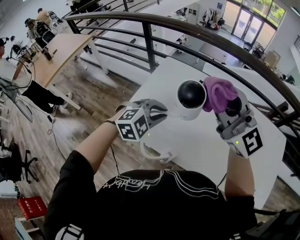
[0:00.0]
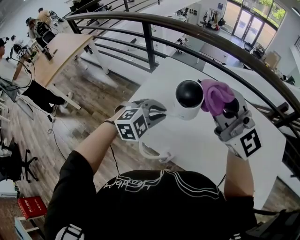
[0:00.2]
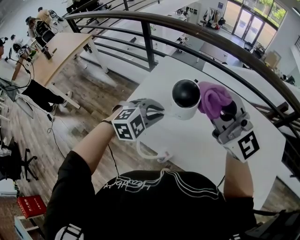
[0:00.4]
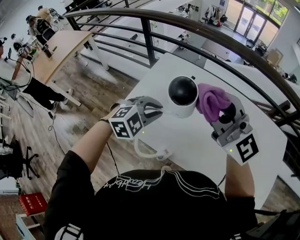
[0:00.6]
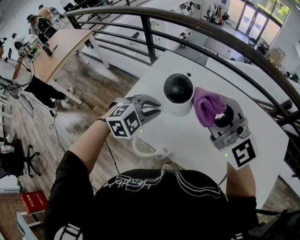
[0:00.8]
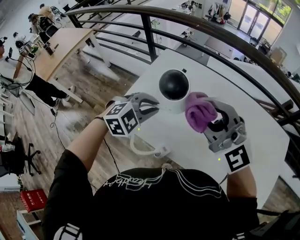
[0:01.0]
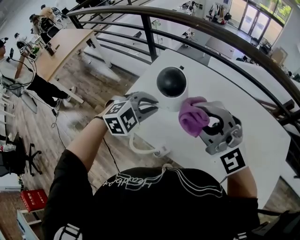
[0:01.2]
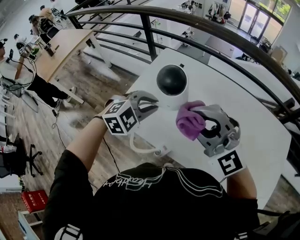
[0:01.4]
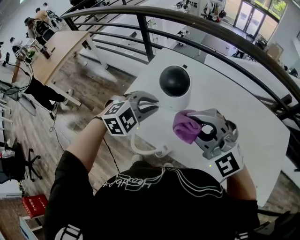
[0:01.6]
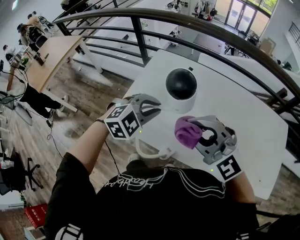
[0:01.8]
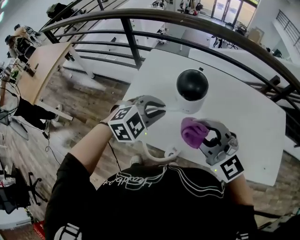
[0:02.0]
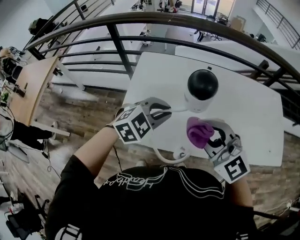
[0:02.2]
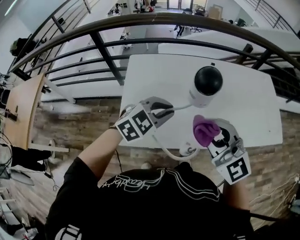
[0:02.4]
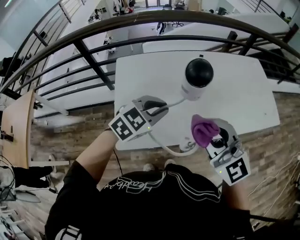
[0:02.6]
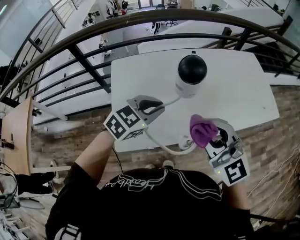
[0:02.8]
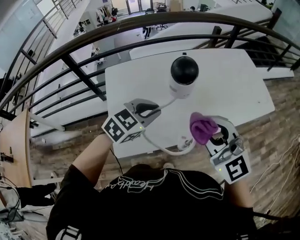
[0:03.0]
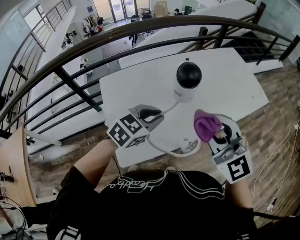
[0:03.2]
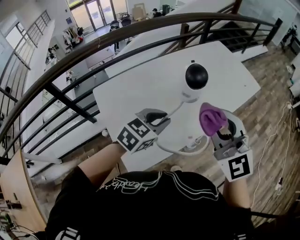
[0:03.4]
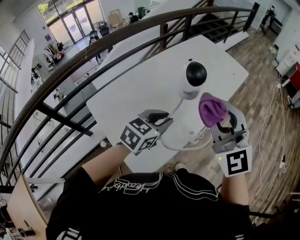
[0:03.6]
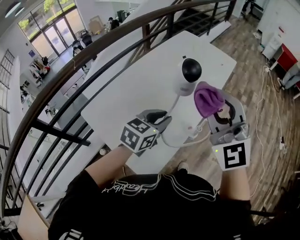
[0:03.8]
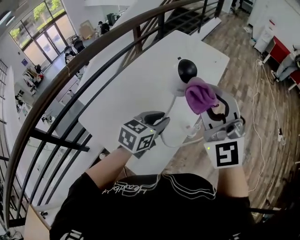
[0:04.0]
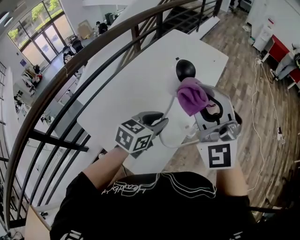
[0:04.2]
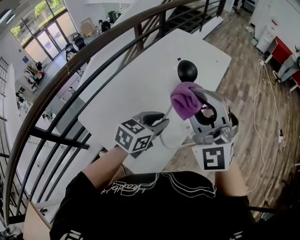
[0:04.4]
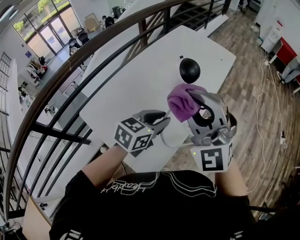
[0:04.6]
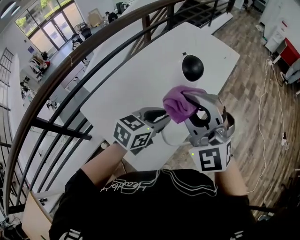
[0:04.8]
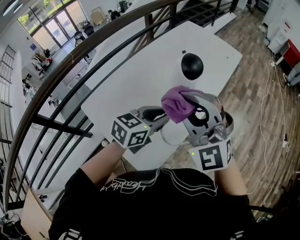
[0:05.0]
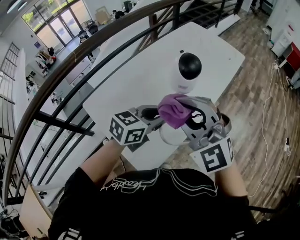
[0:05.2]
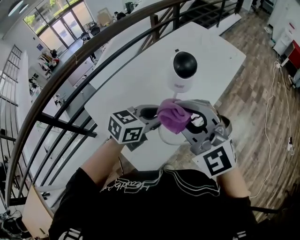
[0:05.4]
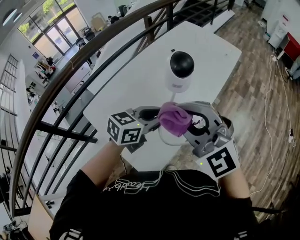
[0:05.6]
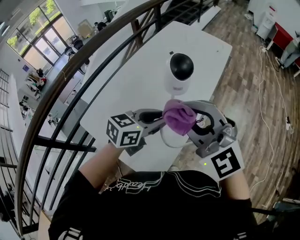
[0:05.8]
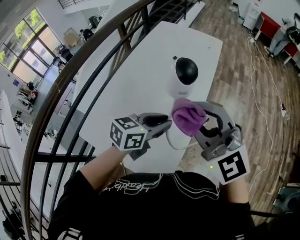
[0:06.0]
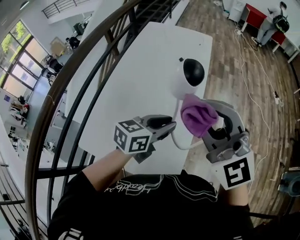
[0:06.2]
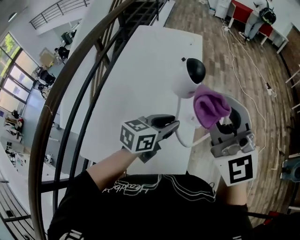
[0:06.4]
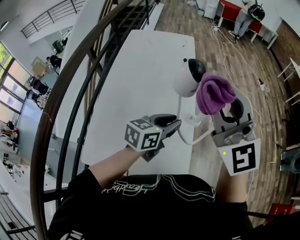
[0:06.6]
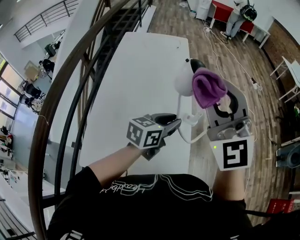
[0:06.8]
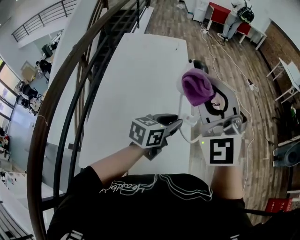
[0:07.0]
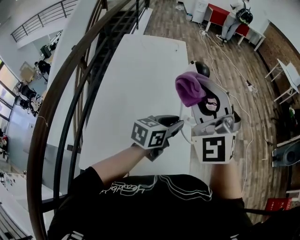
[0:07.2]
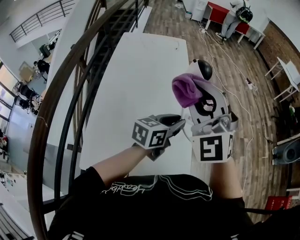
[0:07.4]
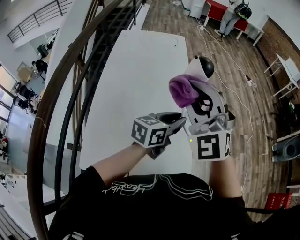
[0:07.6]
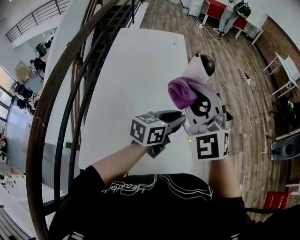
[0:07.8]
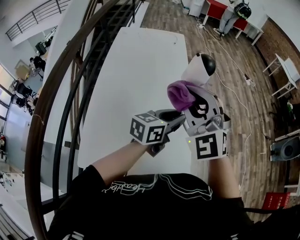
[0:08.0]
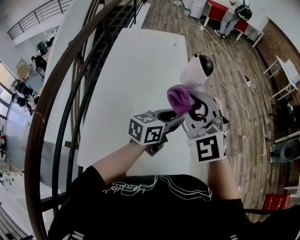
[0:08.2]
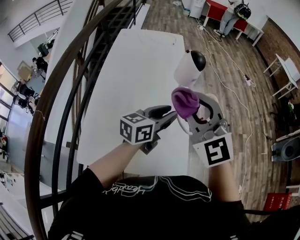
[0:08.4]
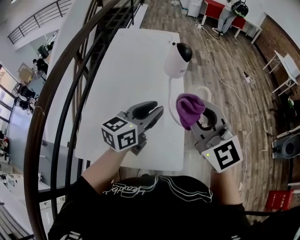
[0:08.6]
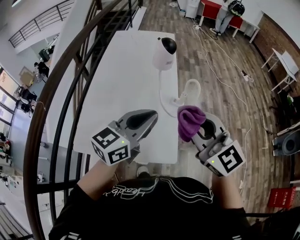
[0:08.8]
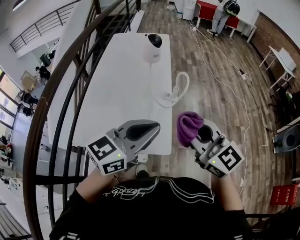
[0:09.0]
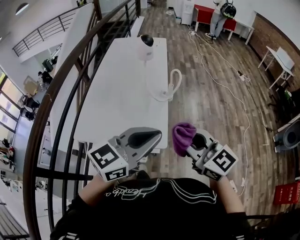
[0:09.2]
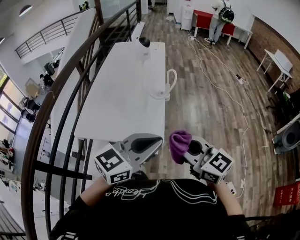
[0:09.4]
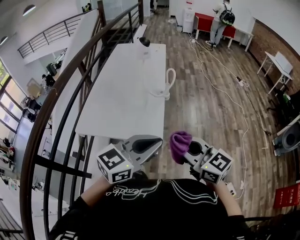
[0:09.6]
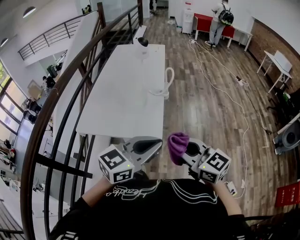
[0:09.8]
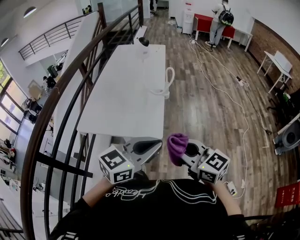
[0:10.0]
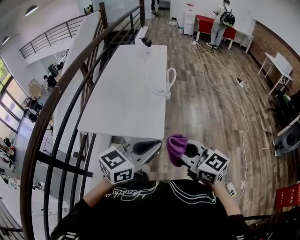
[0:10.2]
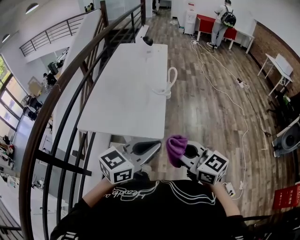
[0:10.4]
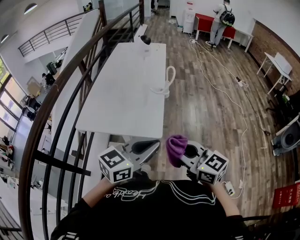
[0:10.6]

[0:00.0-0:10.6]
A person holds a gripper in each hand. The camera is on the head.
0:00.0 to 0:01.6: The right gripper goes approximately 15 cm downward and backward, and swivels about 30 degrees.
0:01.6 to 0:03.0: The left gripper turns by some 40 degrees. Meanwhile the right gripper shifts by about 5 cm, and swivels approximately 60 degrees.
0:03.0 to 0:04.6: The left gripper changes its angle by roughly 30 degrees. Meanwhile the right gripper shifts by some 15 cm, and rotates roughly 50 degrees.
0:04.6 to 0:06.0: The right gripper rotates about 20 degrees.
0:06.0 to 0:07.6: The right gripper goes upward and returns, roughly 10 cm each way, and turns by roughly 50 degrees.
0:07.6 to 0:09.0: The left gripper is displaced backward and upward by some 25 cm, and turns by some 20 degrees; the right gripper goes approximately 30 cm backward and to the right, and rolls clockwise, seen from behind, by some 50 degrees.
0:09.0 to 0:10.6: The left gripper goes some 20 cm backward, while the right gripper shifts roughly 20 cm backward and downward.

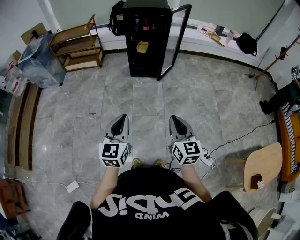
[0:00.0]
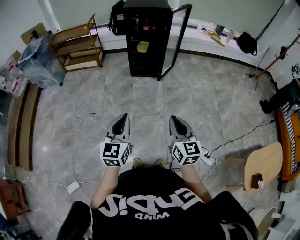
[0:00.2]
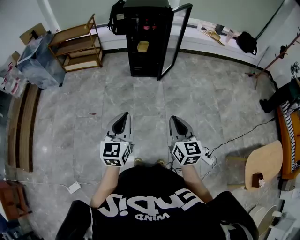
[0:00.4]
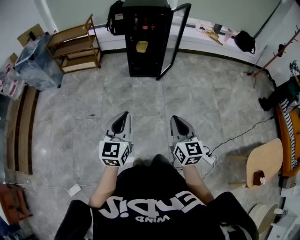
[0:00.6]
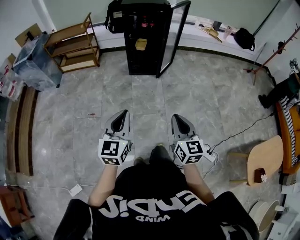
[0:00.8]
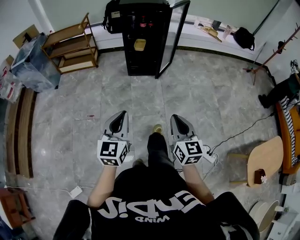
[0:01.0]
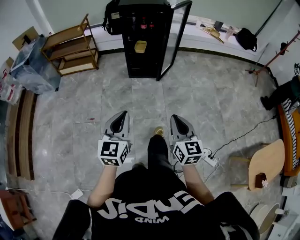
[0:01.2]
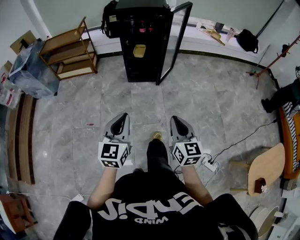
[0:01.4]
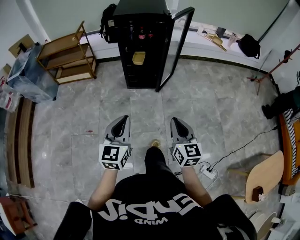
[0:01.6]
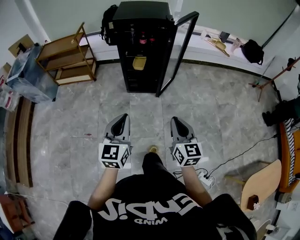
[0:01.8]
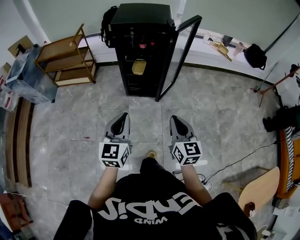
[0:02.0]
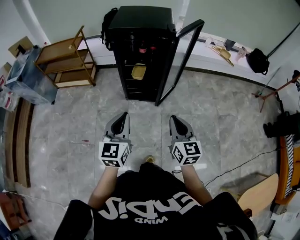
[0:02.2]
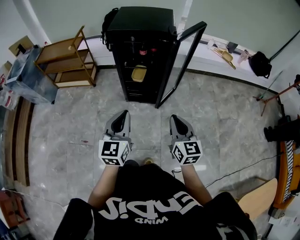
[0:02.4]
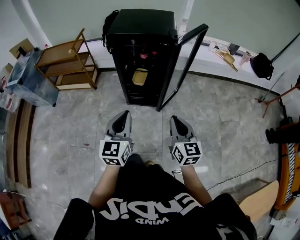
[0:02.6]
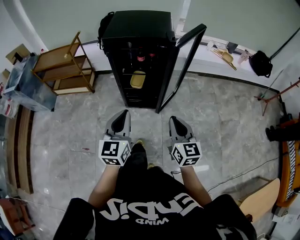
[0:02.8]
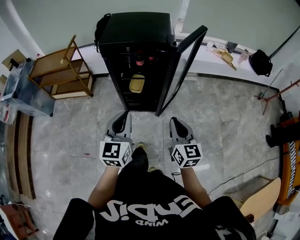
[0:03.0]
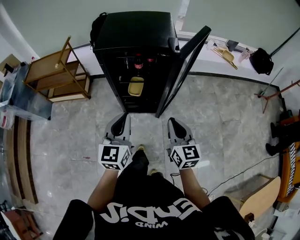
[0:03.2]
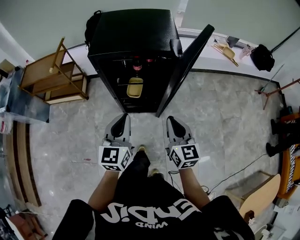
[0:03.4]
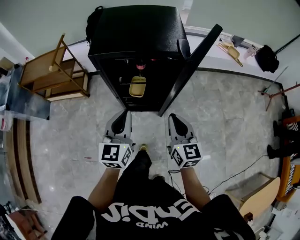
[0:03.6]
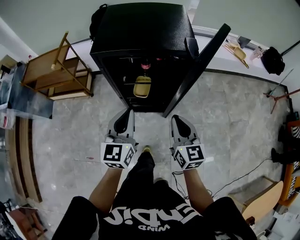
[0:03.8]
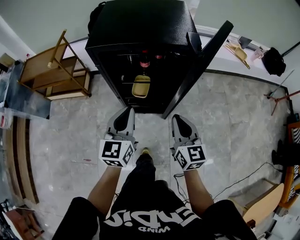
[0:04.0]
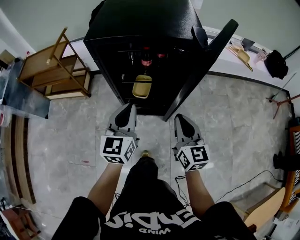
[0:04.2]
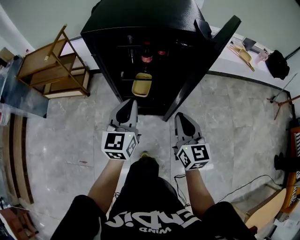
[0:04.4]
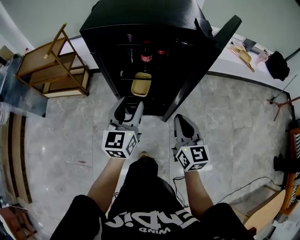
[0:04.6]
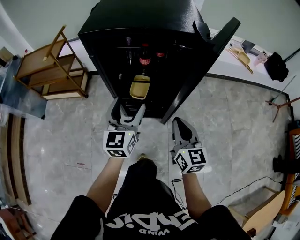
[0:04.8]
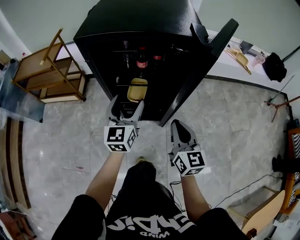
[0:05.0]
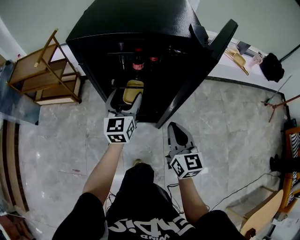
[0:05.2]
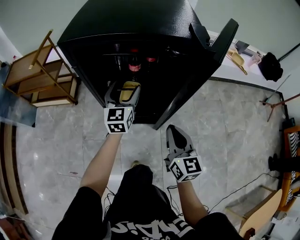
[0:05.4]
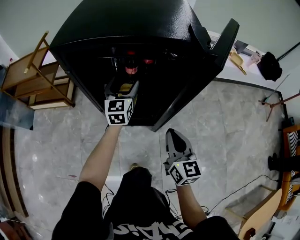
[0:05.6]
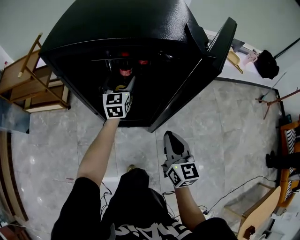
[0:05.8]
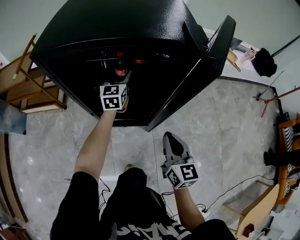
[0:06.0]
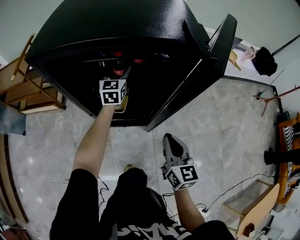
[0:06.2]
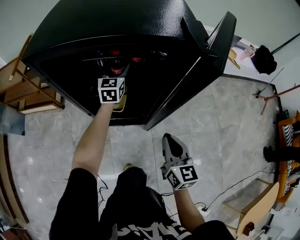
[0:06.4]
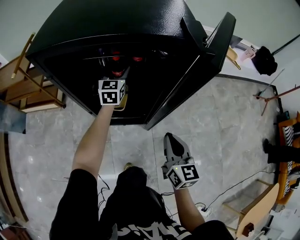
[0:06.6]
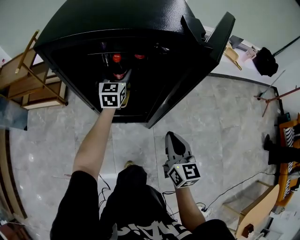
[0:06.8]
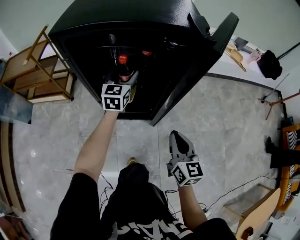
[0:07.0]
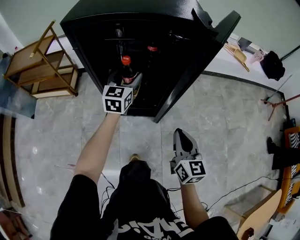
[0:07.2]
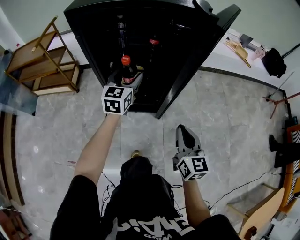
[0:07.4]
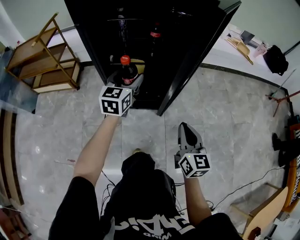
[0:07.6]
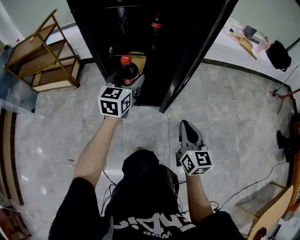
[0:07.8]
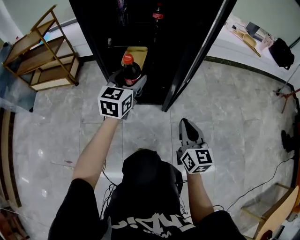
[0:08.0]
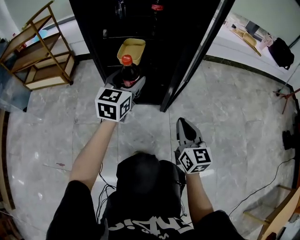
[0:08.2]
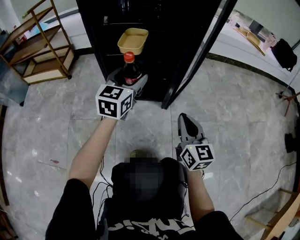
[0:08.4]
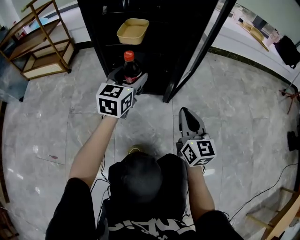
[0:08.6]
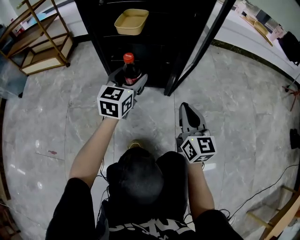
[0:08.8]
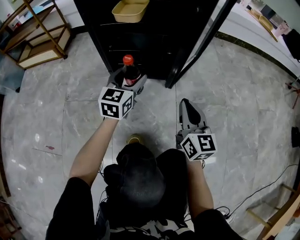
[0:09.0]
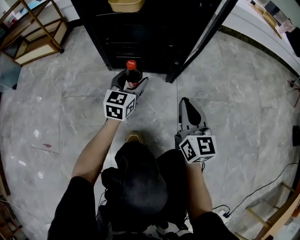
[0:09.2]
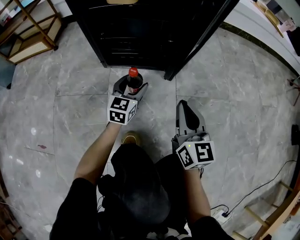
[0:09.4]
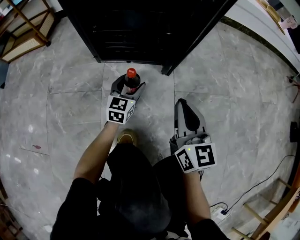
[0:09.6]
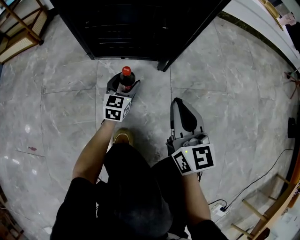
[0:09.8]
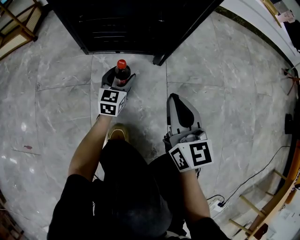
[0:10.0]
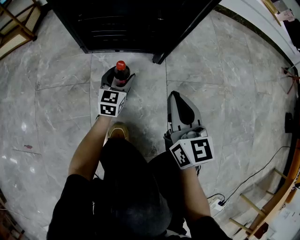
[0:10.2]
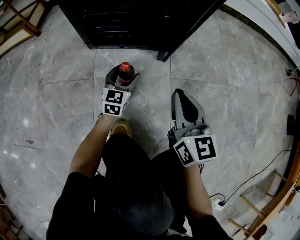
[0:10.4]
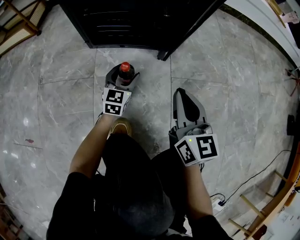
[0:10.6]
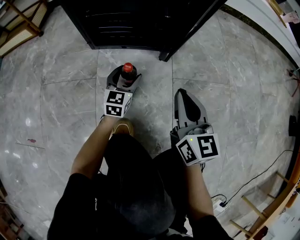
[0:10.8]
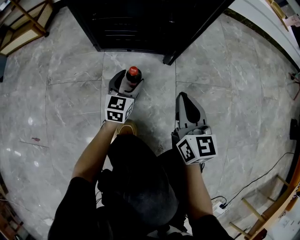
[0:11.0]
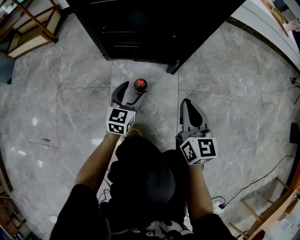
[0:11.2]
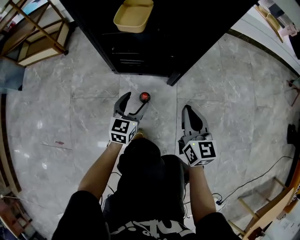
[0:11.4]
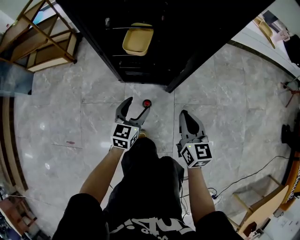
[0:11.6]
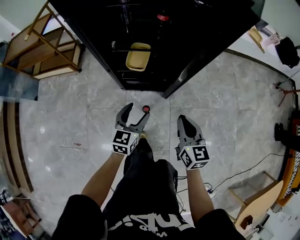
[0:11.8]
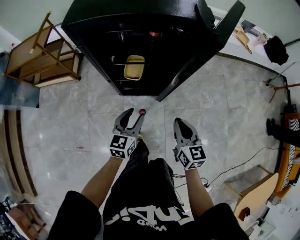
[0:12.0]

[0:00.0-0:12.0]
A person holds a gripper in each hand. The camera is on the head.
0:00.0 to 0:01.6: Both grippers move forward, approximately 20 cm.
0:01.6 to 0:03.0: Both grippers move forward, some 35 cm.
0:03.0 to 0:04.4: Both grippers move forward and downward, about 25 cm.
0:04.4 to 0:06.0: The right gripper shifts some 5 cm downward, while the left gripper moves forward and downward, approximately 30 cm, and opens its fingers.
0:06.0 to 0:07.6: The right gripper heads backward and downward, covering approximately 15 cm; the left gripper travels backward by about 20 cm.
0:07.6 to 0:09.0: Both grippers move downward, roughly 35 cm.
0:09.0 to 0:10.4: The right gripper heads downward, covering some 5 cm, while the left gripper goes roughly 25 cm downward.
0:10.4 to 0:12.0: The two grippers go about 50 cm upward.

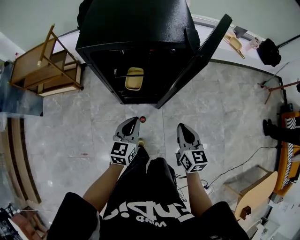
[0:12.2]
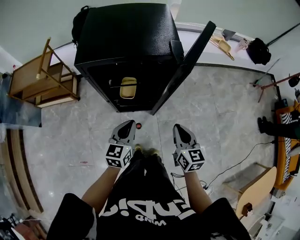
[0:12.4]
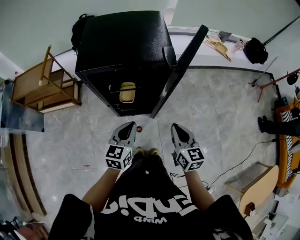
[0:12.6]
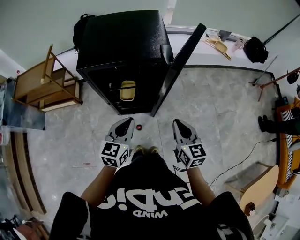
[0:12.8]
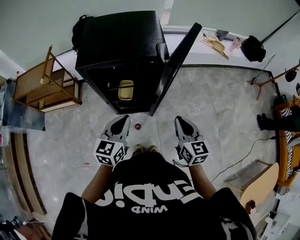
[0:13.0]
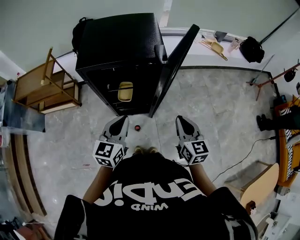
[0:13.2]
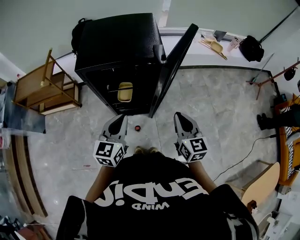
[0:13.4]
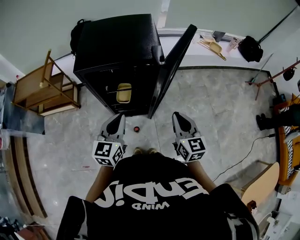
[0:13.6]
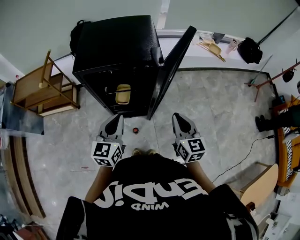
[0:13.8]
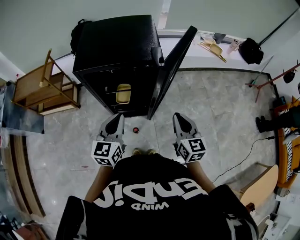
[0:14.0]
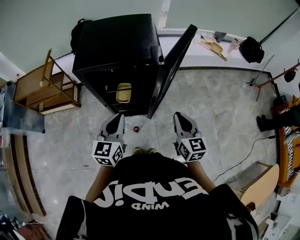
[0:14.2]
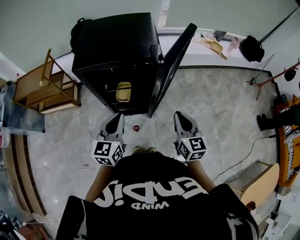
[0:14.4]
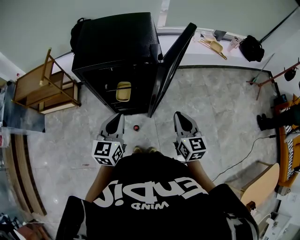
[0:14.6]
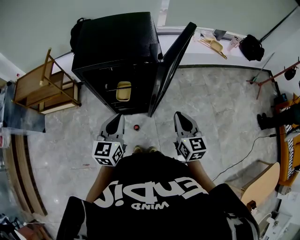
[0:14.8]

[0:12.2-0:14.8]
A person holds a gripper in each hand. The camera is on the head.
0:12.2 to 0:13.4: Both grippers move upward, roughly 15 cm.
0:13.4 to 0:14.8: The grippers move only a little.
